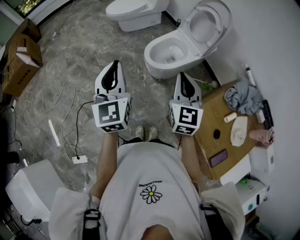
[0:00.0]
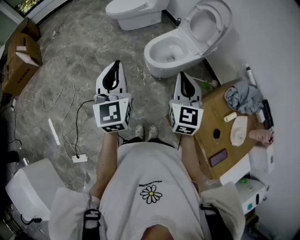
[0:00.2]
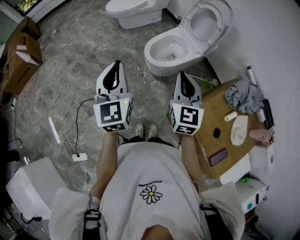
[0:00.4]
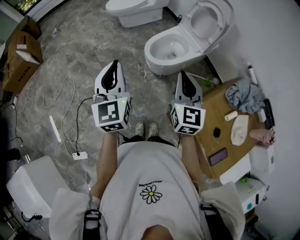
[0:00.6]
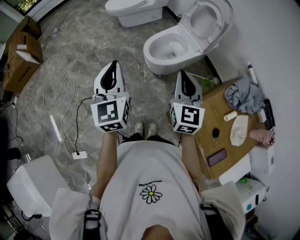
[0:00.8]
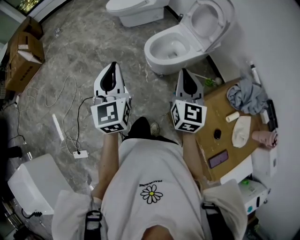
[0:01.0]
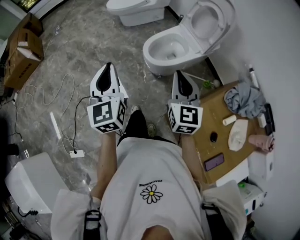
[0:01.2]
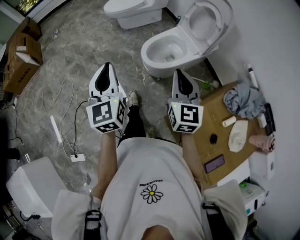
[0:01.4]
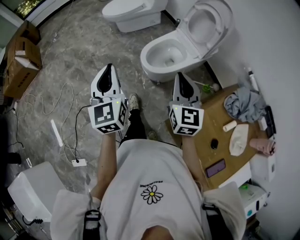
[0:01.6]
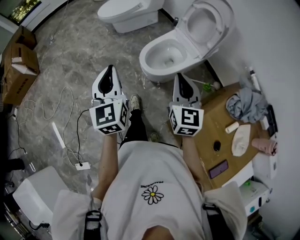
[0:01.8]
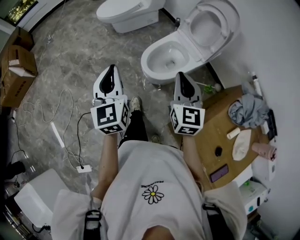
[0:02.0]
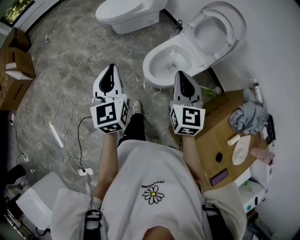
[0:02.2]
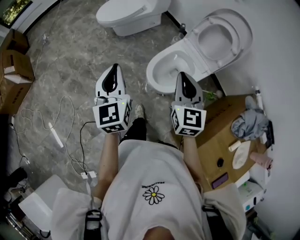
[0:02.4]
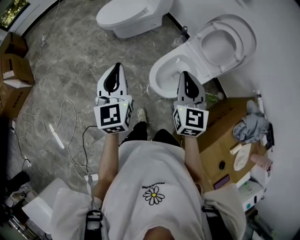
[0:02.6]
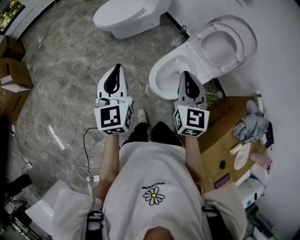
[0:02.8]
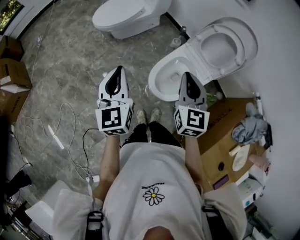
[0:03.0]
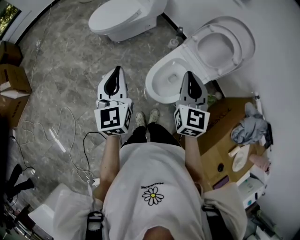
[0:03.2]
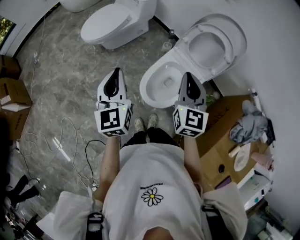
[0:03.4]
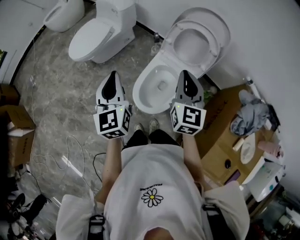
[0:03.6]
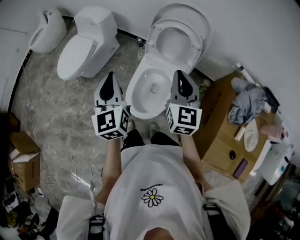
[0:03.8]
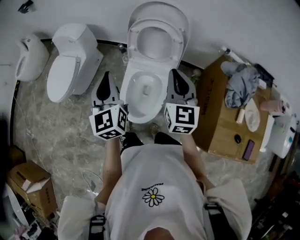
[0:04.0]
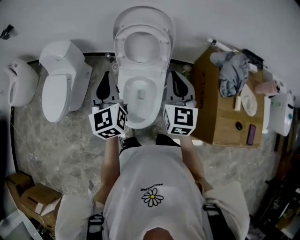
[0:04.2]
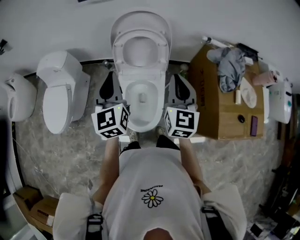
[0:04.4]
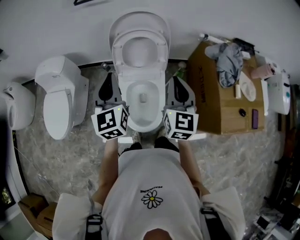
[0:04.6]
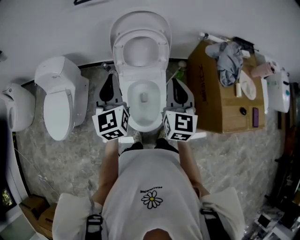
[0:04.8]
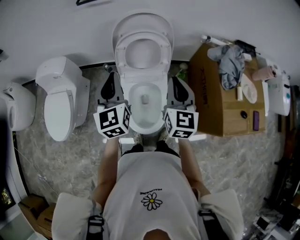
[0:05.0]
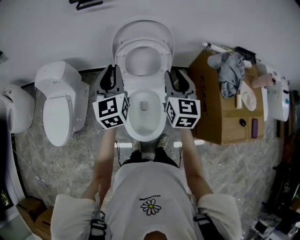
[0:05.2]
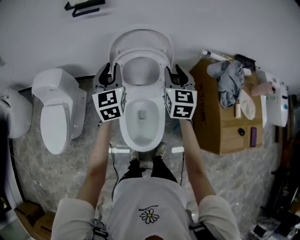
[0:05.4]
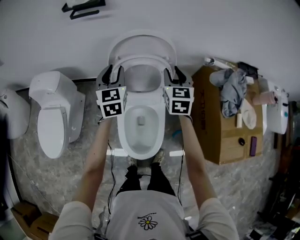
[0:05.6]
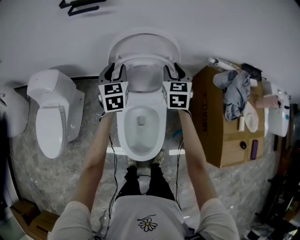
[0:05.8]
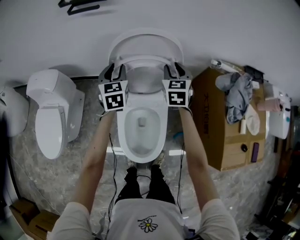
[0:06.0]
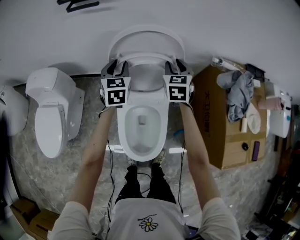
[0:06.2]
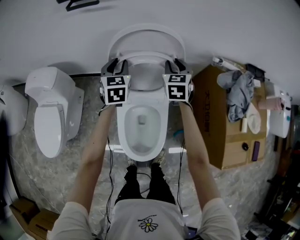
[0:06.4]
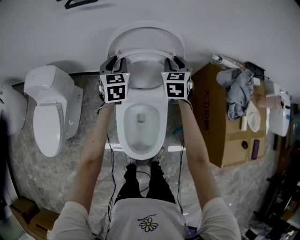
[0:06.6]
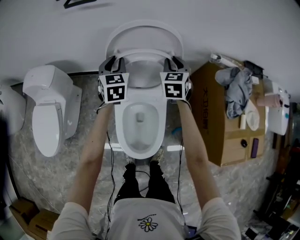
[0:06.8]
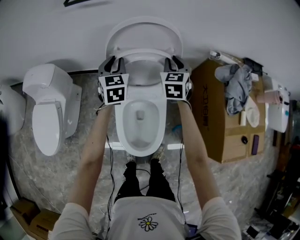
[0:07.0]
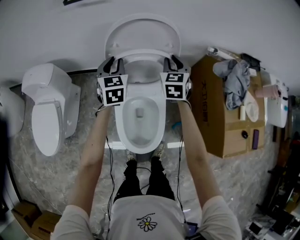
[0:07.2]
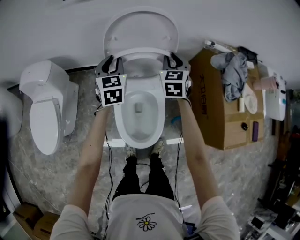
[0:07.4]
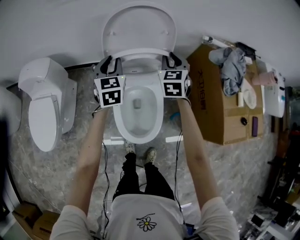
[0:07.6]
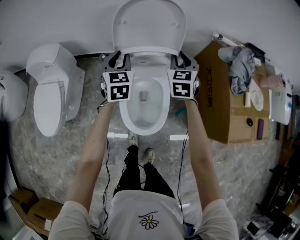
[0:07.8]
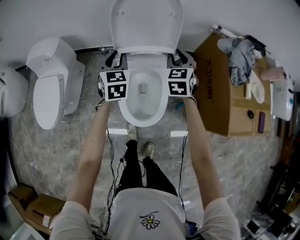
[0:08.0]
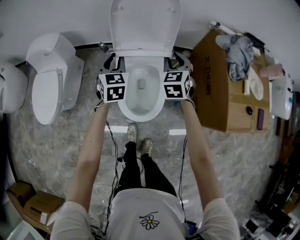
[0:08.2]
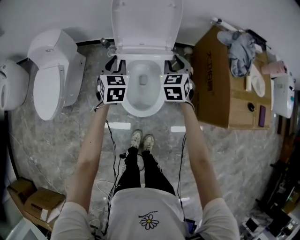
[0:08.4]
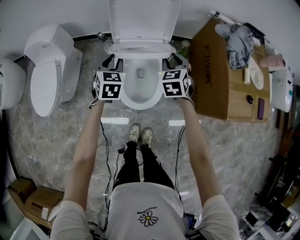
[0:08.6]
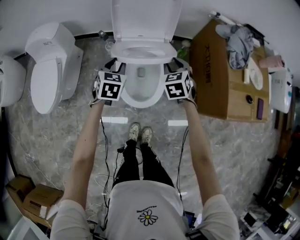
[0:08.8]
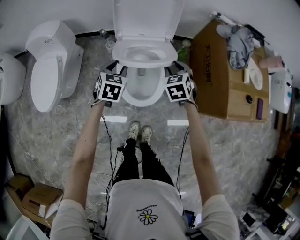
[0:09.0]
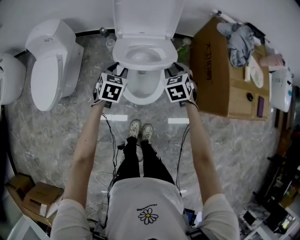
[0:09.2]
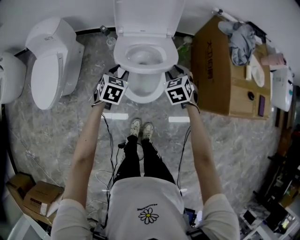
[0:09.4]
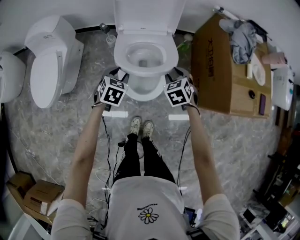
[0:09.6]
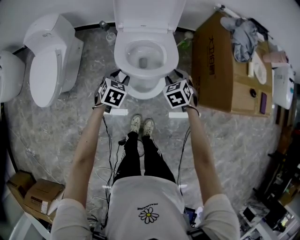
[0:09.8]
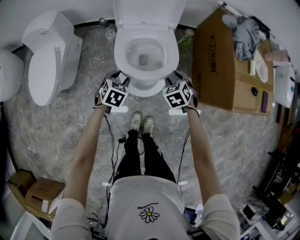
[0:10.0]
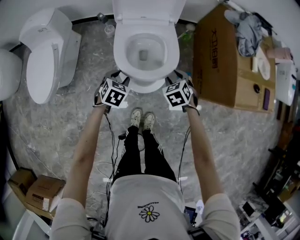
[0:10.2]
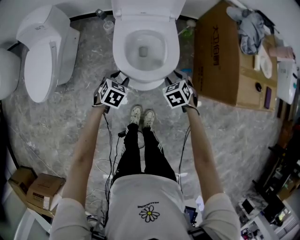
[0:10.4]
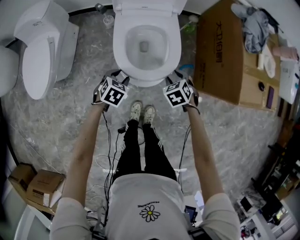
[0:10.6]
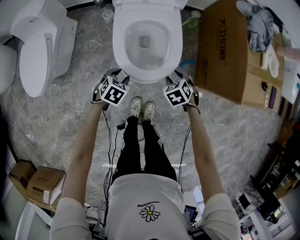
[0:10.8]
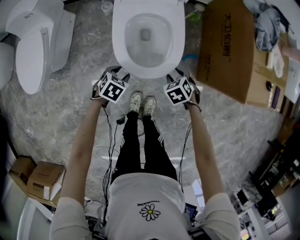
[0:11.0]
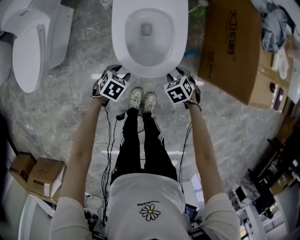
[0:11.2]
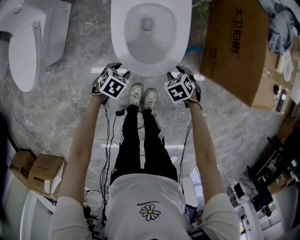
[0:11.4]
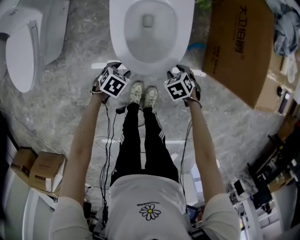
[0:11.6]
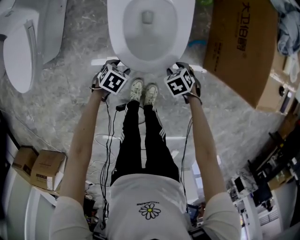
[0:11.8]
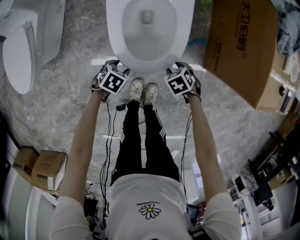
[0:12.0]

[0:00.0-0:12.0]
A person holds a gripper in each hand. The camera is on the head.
0:00.0 to 0:01.6: The two grippers go approximately 5 cm forward.
0:01.6 to 0:03.0: The two grippers go approximately 30 cm forward.
0:03.0 to 0:04.4: The right gripper changes place by roughly 20 cm, and turns by roughly 50 degrees. Meanwhile the left gripper shifts by about 35 cm, and rotates some 50 degrees.
0:04.4 to 0:06.0: Both grippers travel together forward and downward, approximately 30 cm. The right gripper turns by approximately 20 degrees, and opens its fingers, while the left gripper opens up.
0:06.0 to 0:07.6: Both grippers travel together backward, roughly 10 cm.
0:07.6 to 0:09.0: Both grippers move backward and downward, some 25 cm. The right gripper turns by roughly 20 degrees, while the left gripper changes its angle by approximately 20 degrees.
0:09.0 to 0:10.4: Both grippers travel together downward and backward, roughly 20 cm. The left gripper swivels about 20 degrees.
0:10.4 to 0:12.0: The two grippers go roughly 20 cm downward. The right gripper changes its angle by some 20 degrees, while the left gripper swivels some 20 degrees.

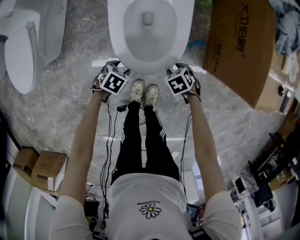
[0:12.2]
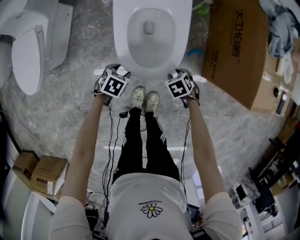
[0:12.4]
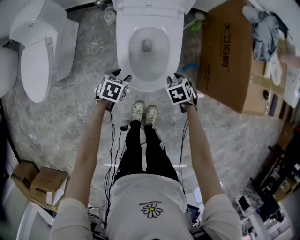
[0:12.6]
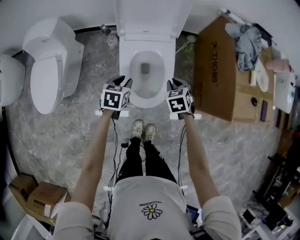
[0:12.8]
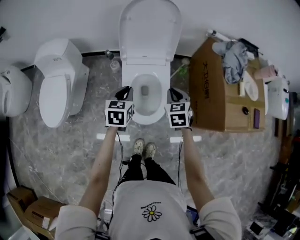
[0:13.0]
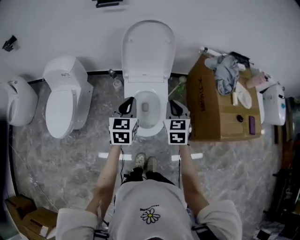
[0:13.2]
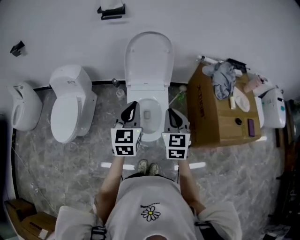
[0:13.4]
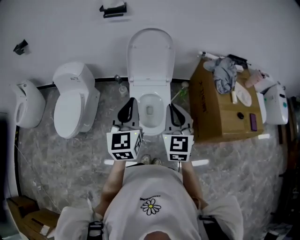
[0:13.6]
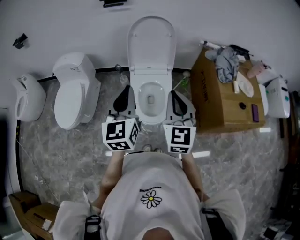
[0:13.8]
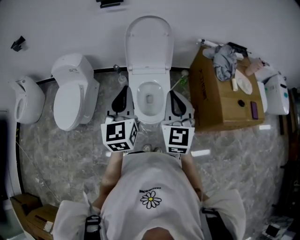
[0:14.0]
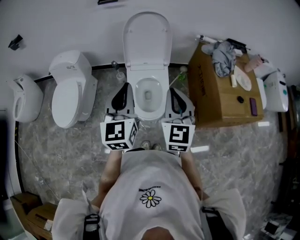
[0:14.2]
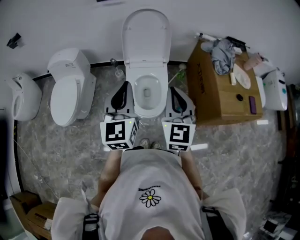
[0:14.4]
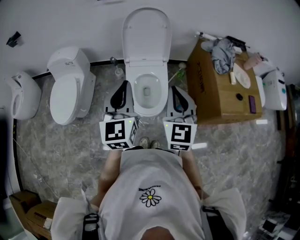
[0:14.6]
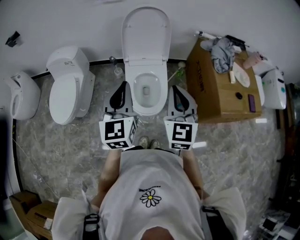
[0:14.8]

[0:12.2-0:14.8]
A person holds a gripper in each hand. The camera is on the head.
0:12.2 to 0:13.4: Both grippers travel together upward, some 60 cm. The left gripper points its fingers about 60 degrees further upward, and closes up, while the right gripper angles its fingers upward, by some 60 degrees, and closes.
0:13.4 to 0:14.8: The right gripper heads upward and backward, covering roughly 10 cm. The left gripper travels backward and upward by some 10 cm.

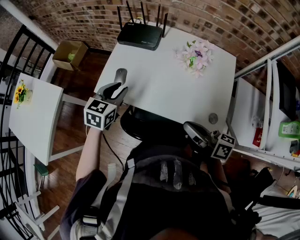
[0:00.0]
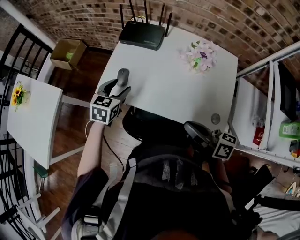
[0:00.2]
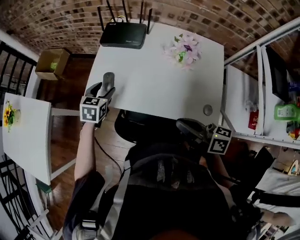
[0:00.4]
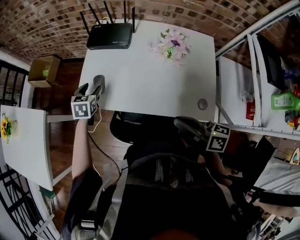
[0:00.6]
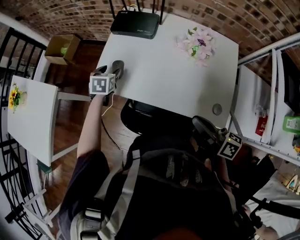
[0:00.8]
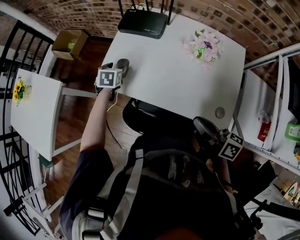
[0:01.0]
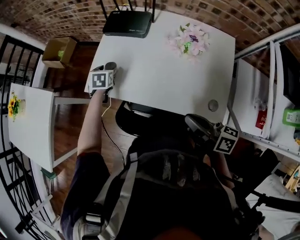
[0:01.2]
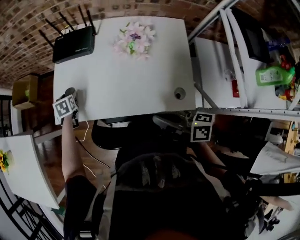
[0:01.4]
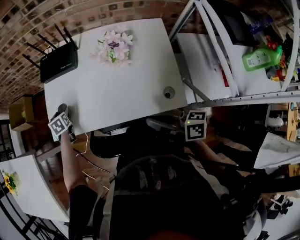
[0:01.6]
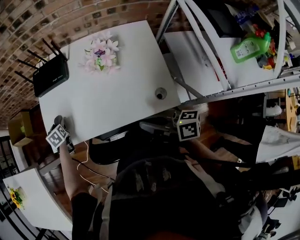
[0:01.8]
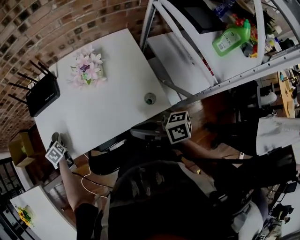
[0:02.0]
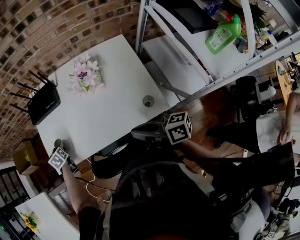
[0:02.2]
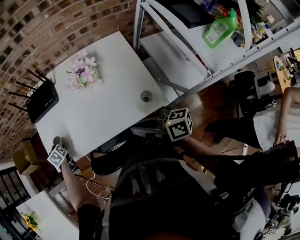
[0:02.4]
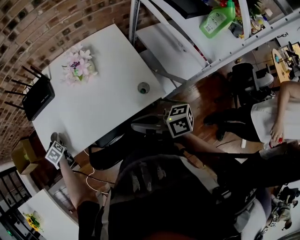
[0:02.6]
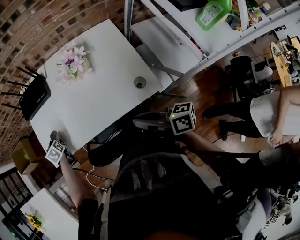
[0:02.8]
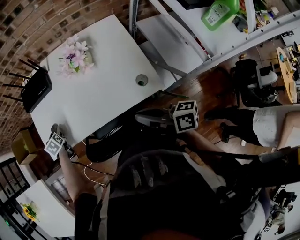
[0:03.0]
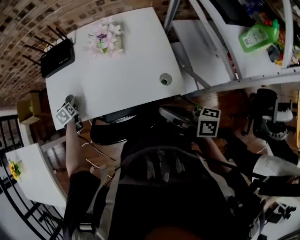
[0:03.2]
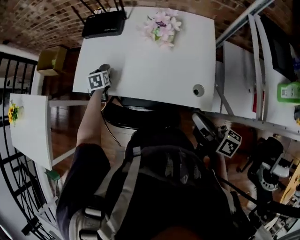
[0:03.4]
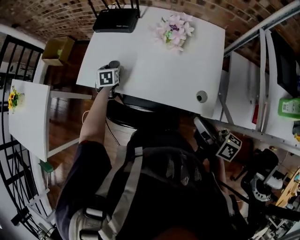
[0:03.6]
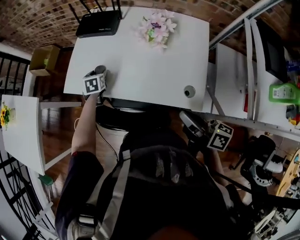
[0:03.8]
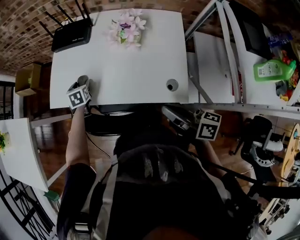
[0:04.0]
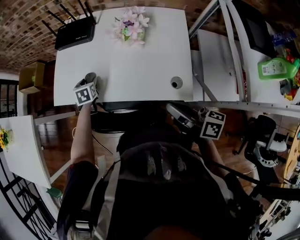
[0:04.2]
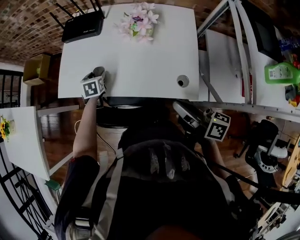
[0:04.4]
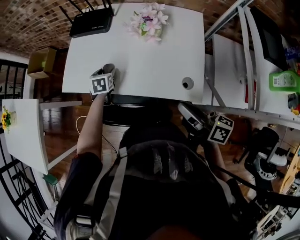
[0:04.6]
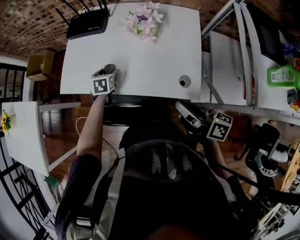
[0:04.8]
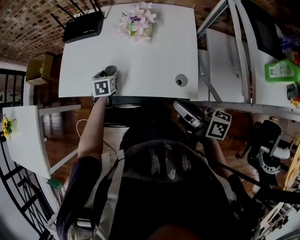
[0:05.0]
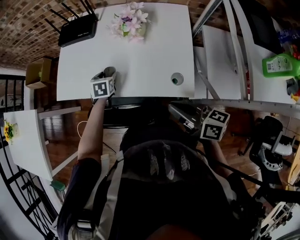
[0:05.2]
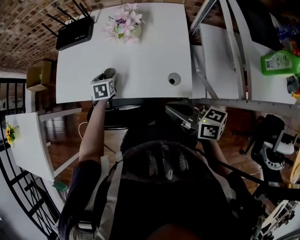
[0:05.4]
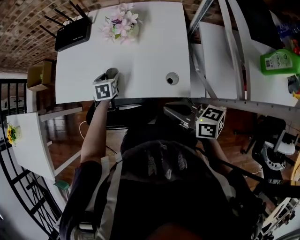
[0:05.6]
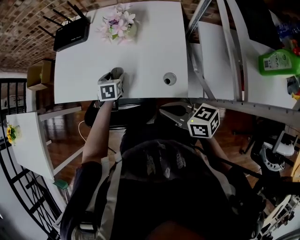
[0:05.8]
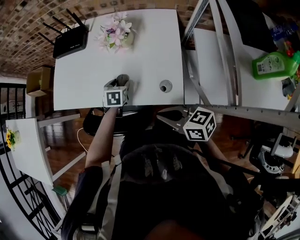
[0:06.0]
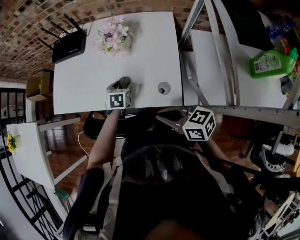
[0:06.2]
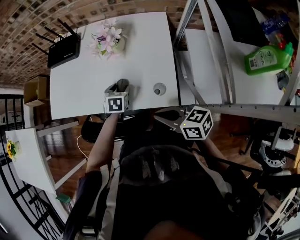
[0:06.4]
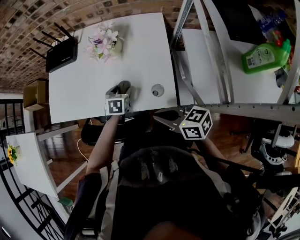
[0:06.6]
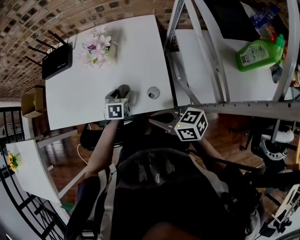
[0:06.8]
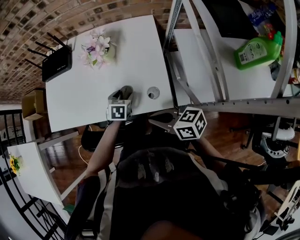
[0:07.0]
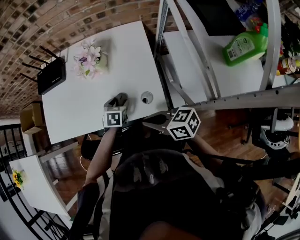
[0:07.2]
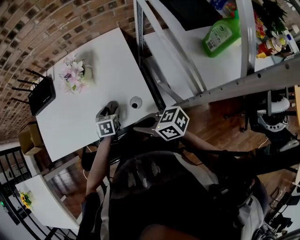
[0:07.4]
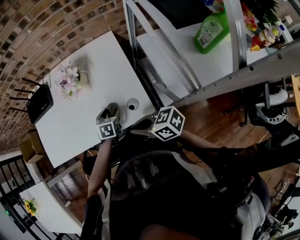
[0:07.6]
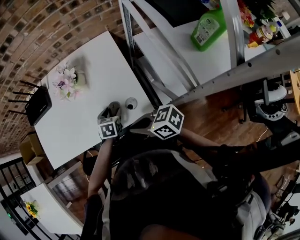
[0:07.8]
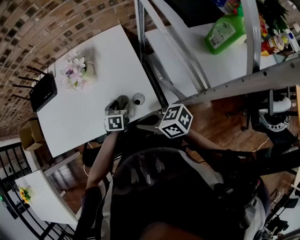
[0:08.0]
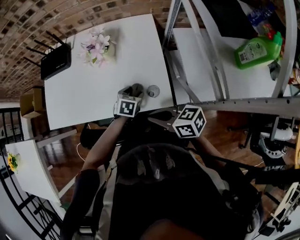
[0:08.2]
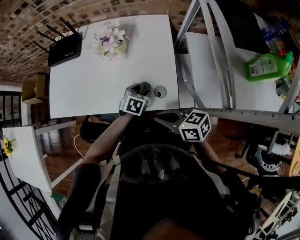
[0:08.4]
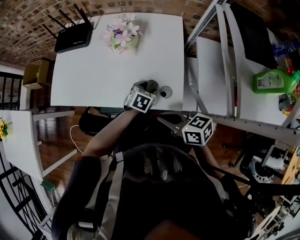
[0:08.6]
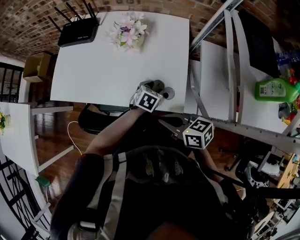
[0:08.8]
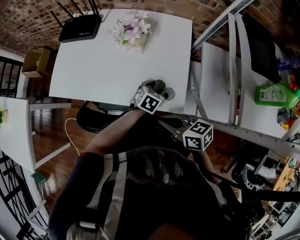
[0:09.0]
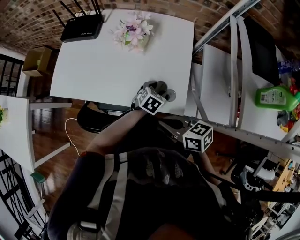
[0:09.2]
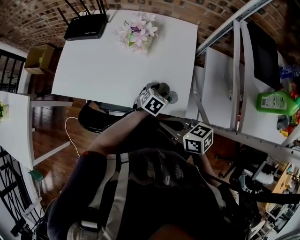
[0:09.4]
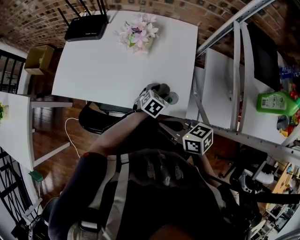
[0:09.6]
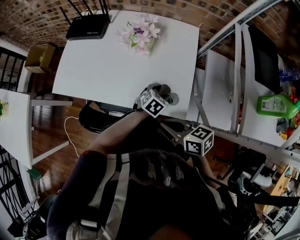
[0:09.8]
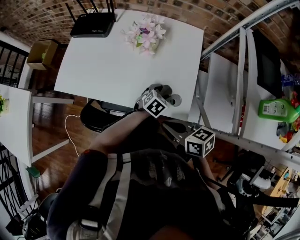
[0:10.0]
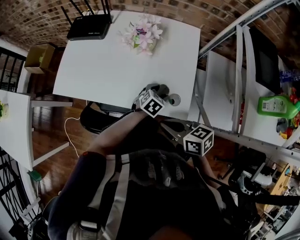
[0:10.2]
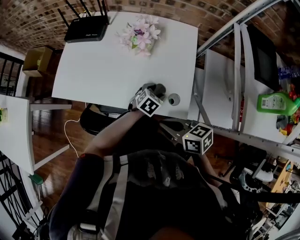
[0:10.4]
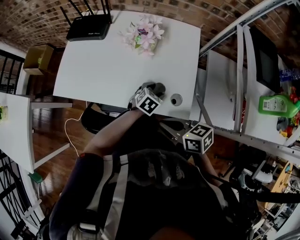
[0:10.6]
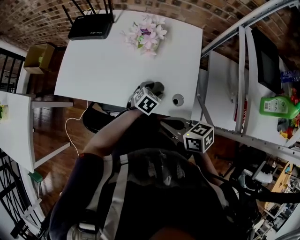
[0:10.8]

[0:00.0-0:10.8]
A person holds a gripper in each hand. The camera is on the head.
0:00.0 to 0:01.6: The right gripper ends up some 5 cm from where it was, while the left gripper is displaced downward and forward by about 25 cm, swivels approximately 30 degrees, and opens.
0:01.6 to 0:03.0: The right gripper shifts some 5 cm backward.
0:03.0 to 0:04.6: The left gripper shifts approximately 15 cm to the right and backward.
0:04.6 to 0:06.2: The left gripper shifts about 20 cm to the right and backward; the right gripper changes place by some 5 cm, and turns by some 30 degrees.
0:06.2 to 0:07.8: The left gripper is displaced to the right and backward by roughly 10 cm.
0:07.8 to 0:09.2: There are only small adjustments of the grippers.
0:09.2 to 0:10.8: The left gripper heads to the left, covering approximately 5 cm.
